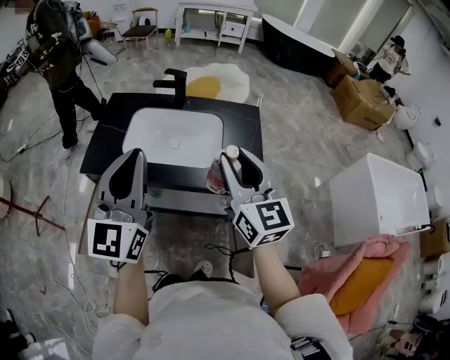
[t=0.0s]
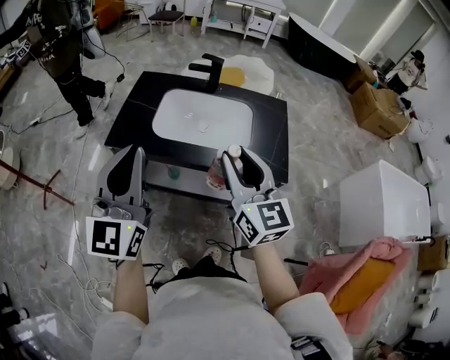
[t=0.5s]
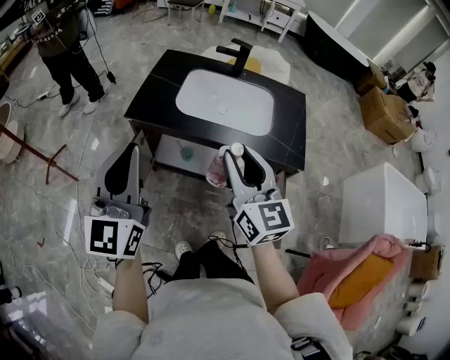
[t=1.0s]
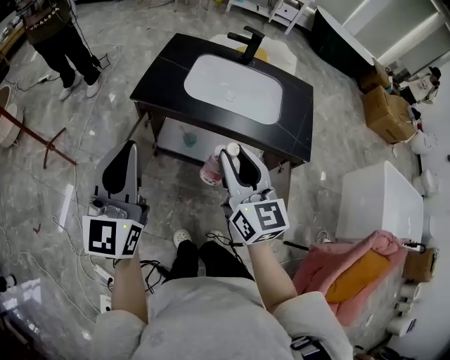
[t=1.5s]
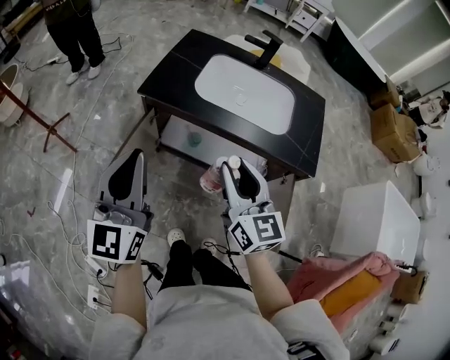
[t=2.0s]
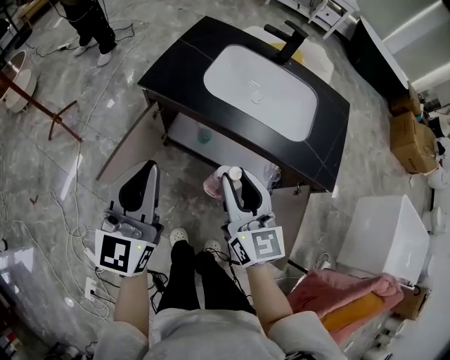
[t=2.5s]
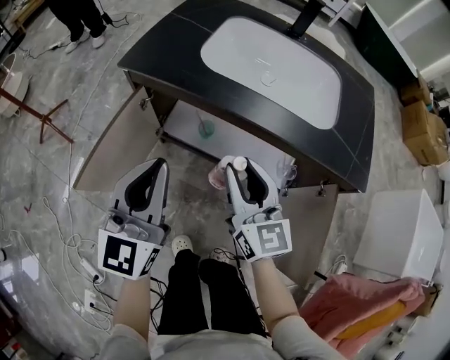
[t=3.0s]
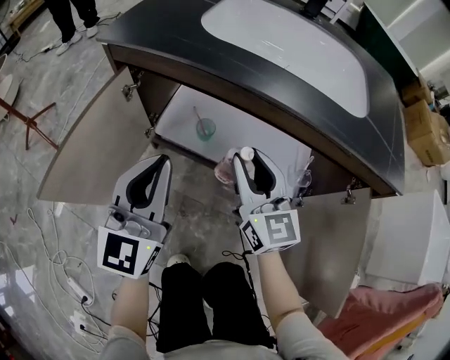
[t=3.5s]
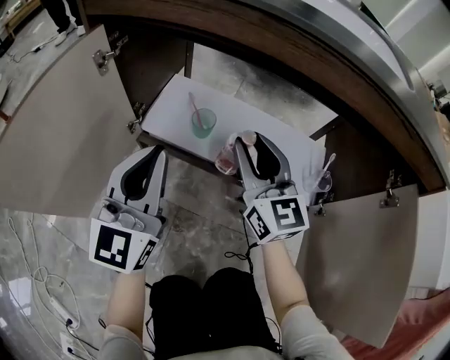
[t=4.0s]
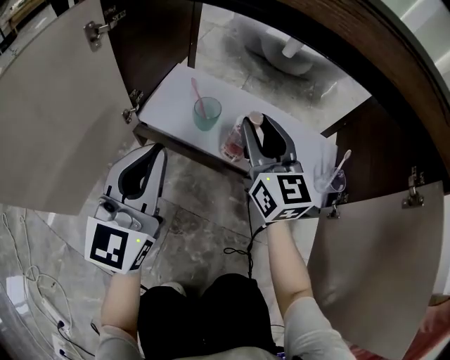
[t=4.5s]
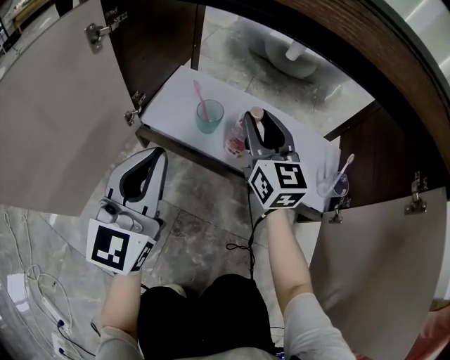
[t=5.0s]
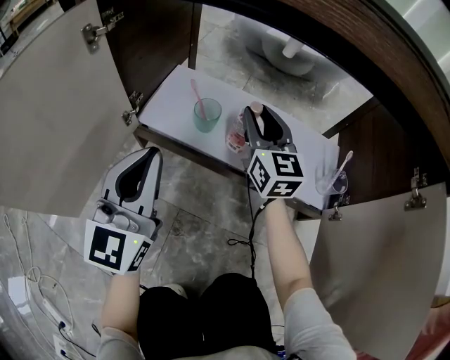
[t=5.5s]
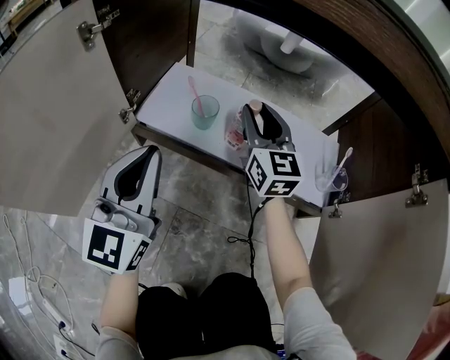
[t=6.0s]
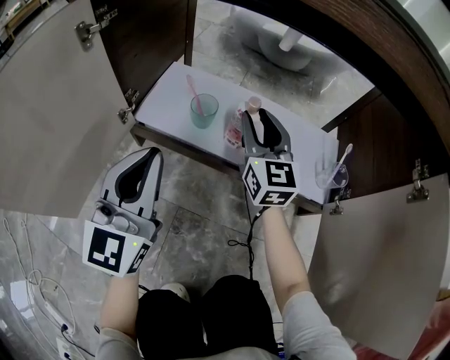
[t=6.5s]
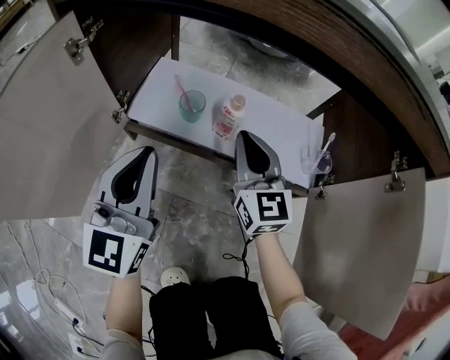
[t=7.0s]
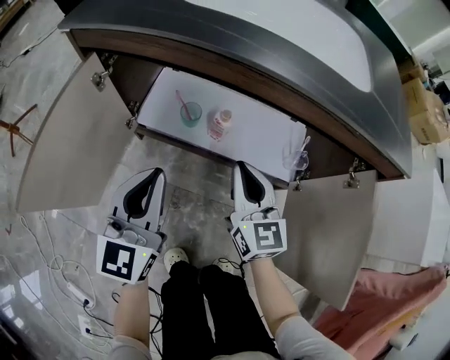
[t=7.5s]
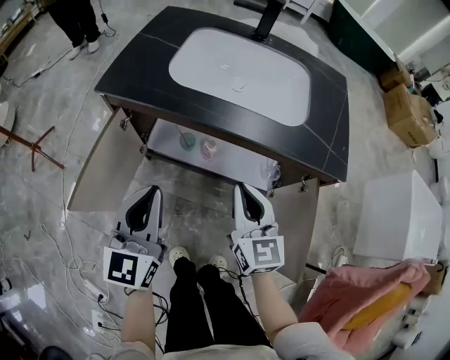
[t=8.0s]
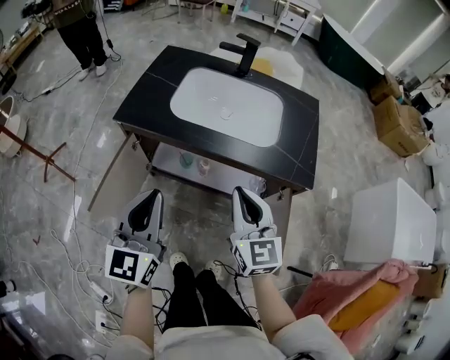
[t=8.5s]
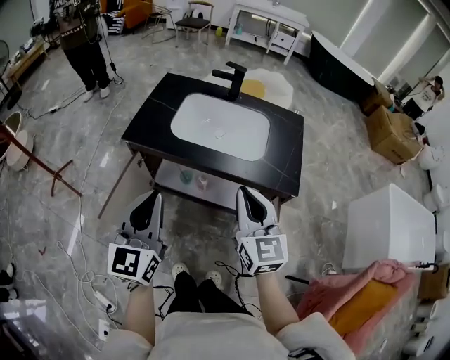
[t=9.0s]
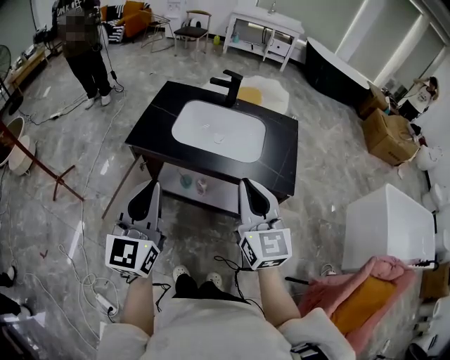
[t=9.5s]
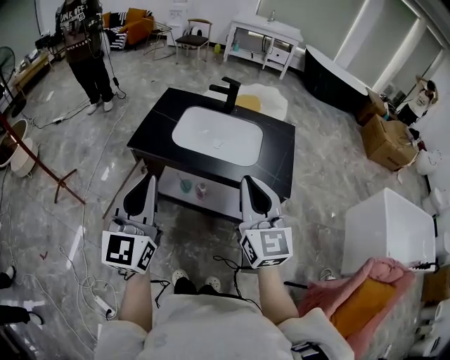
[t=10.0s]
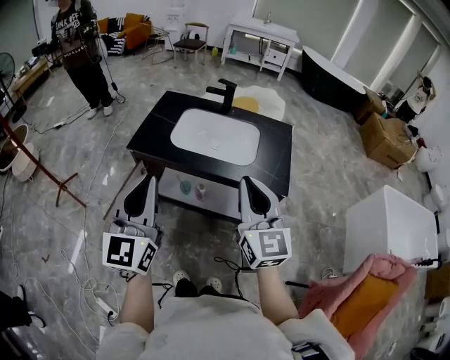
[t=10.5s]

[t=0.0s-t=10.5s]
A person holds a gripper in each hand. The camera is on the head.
t=0.0s to t=2.0s: The right gripper moves to the left and downward, about 25 cm. Meanwhile the left gripper is displaced to the left and backward by about 25 cm.
t=2.0s to t=4.0s: Both grippers move downward, about 50 cm.
t=4.0s to t=6.5s: The left gripper travels downward by about 10 cm; the right gripper moves downward and forward, some 15 cm.
t=6.5s to t=8.5s: The left gripper heads upward, covering roughly 50 cm. The right gripper goes some 60 cm upward and backward, and closes.
t=8.5s to t=10.5s: The grippers both shift upward by some 20 cm.

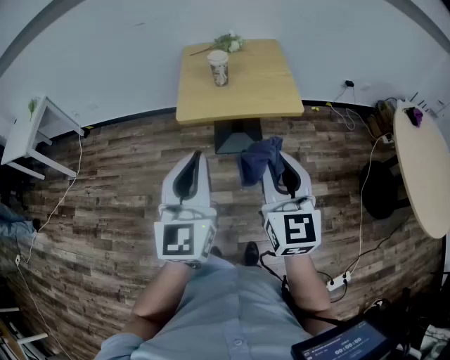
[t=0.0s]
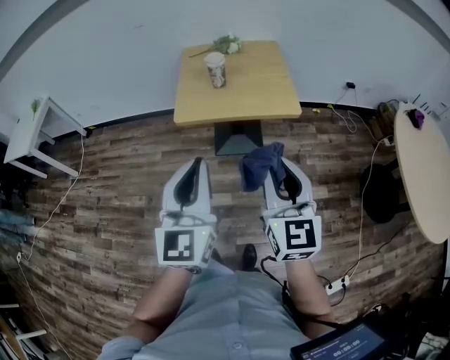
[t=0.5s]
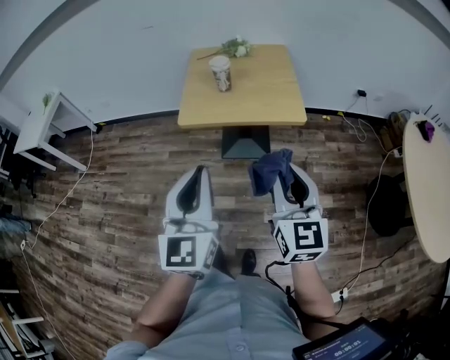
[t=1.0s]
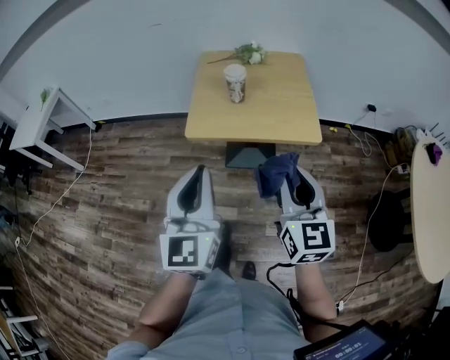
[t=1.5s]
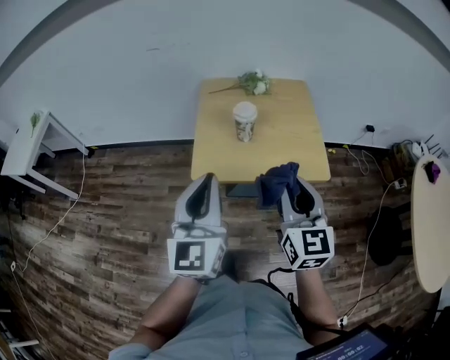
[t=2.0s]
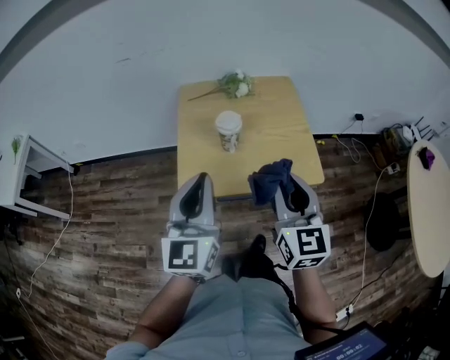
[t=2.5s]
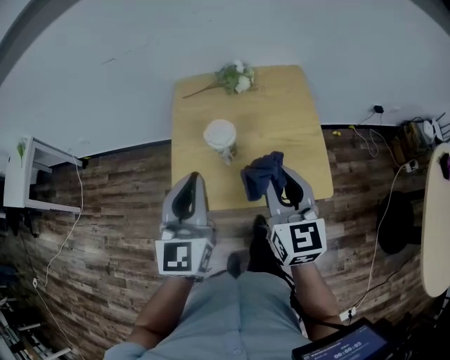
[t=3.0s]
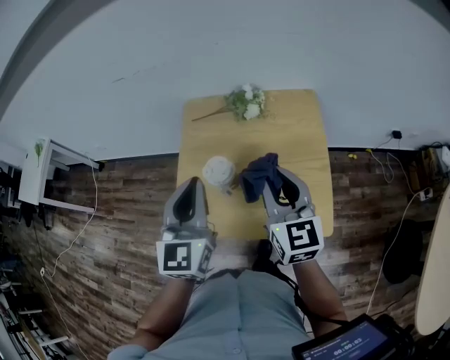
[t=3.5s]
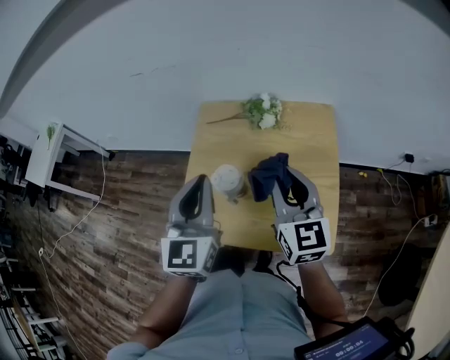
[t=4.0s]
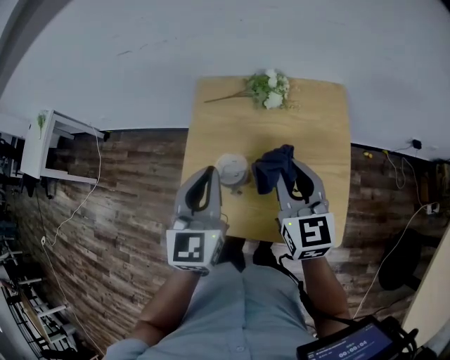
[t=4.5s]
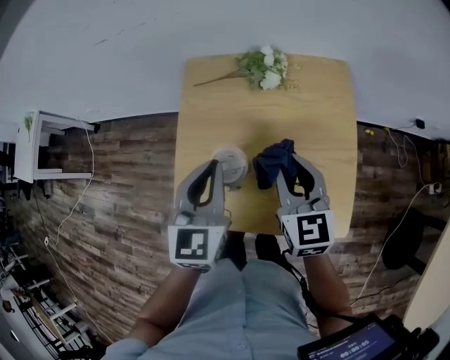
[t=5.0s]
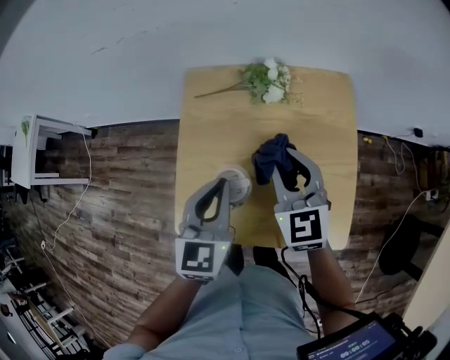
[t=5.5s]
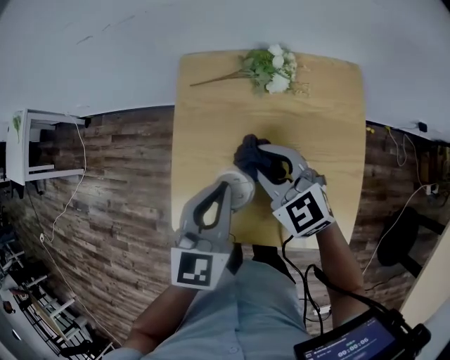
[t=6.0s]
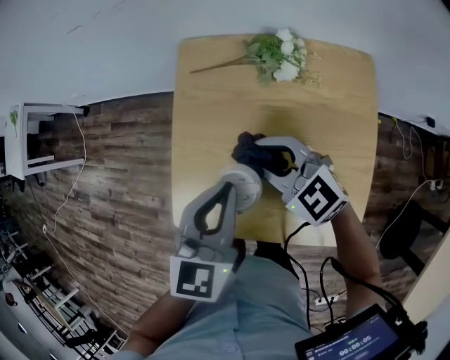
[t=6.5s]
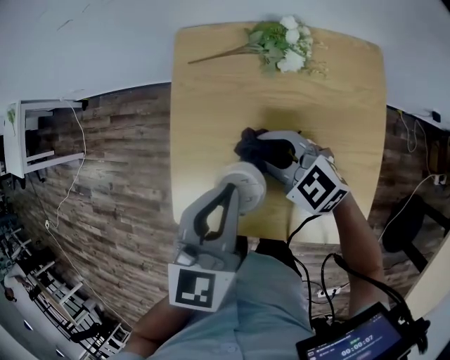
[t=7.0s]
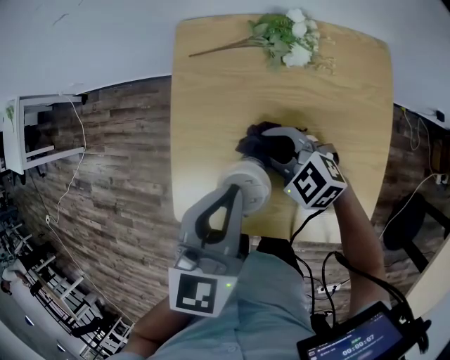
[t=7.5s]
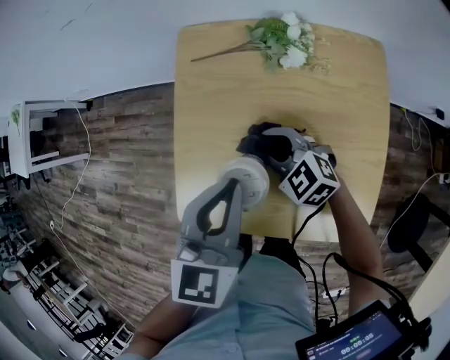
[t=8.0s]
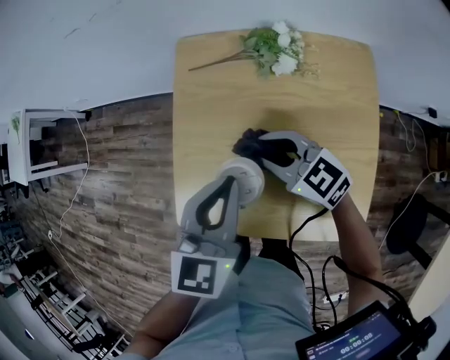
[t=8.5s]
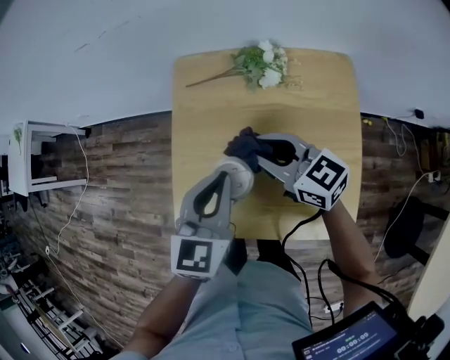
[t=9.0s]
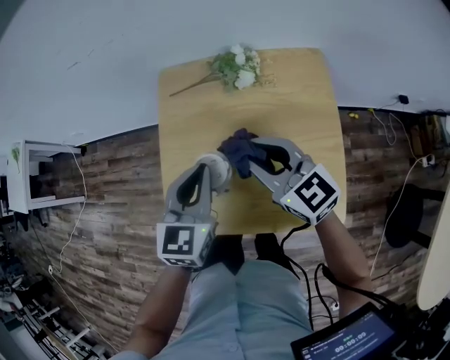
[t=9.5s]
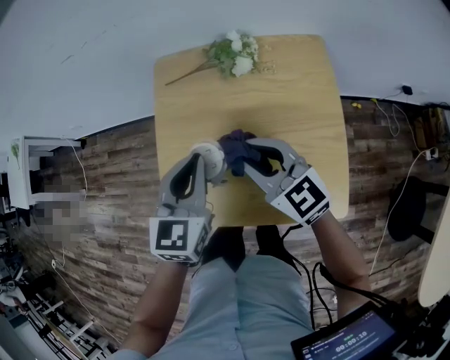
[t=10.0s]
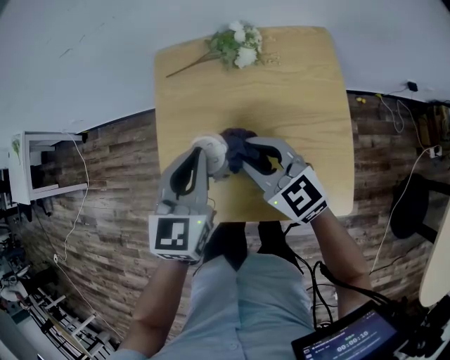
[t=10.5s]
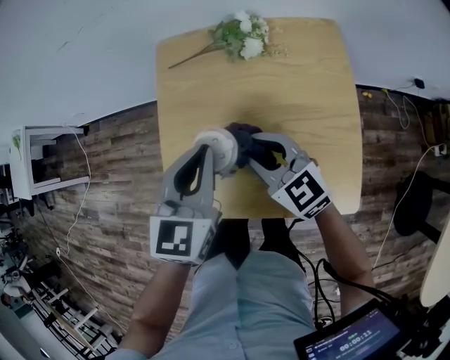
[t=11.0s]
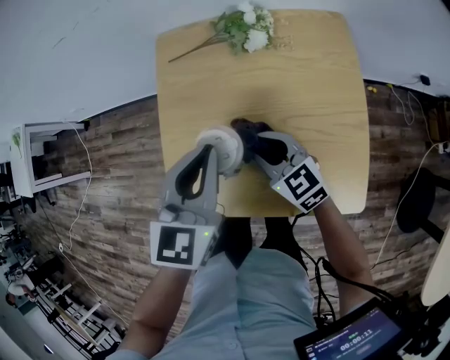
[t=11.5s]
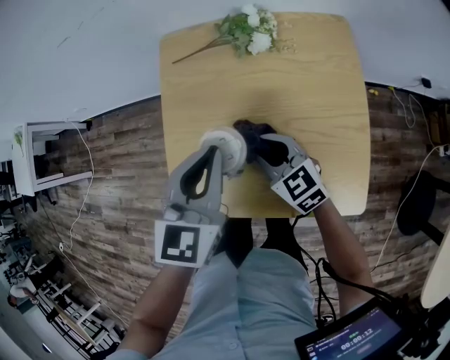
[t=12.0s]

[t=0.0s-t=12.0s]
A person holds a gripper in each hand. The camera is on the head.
t=0.0s to t=2.0s: Both grippers travel together forward, some 25 cm.
t=2.0s to t=4.0s: The grippers both shift forward by about 30 cm.
t=4.0s to t=6.0s: The right gripper heads downward, to the left and forward, covering about 20 cm, and swivels about 40 degrees. Meanwhile the left gripper goes about 15 cm downward and forward, and turns by about 20 degrees.
t=6.0s to t=8.0s: The right gripper moves downward, some 10 cm, and rotates roughly 20 degrees.
t=8.0s to t=10.0s: The right gripper moves upward and backward, roughly 15 cm, and swivels roughly 30 degrees.
t=10.0s to t=12.0s: The right gripper moves downward, about 10 cm.

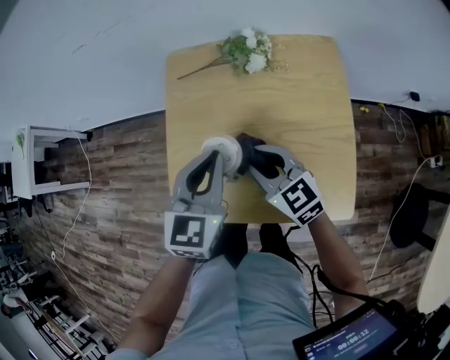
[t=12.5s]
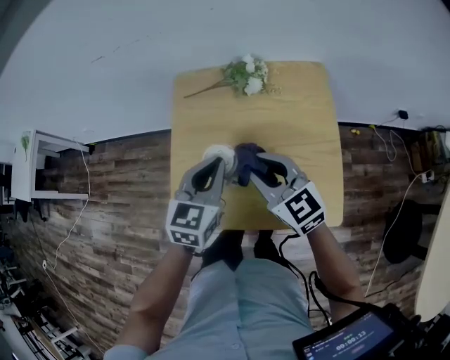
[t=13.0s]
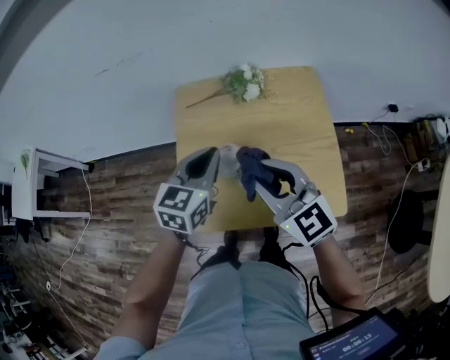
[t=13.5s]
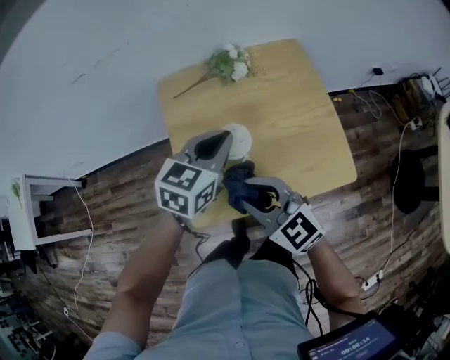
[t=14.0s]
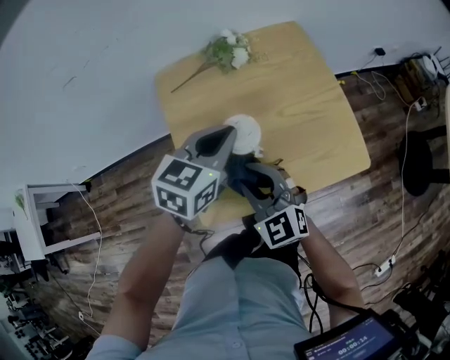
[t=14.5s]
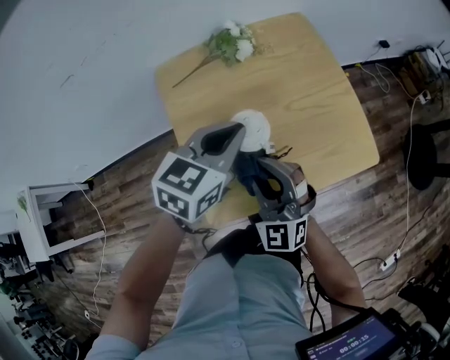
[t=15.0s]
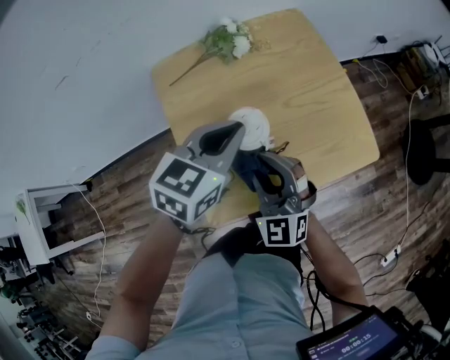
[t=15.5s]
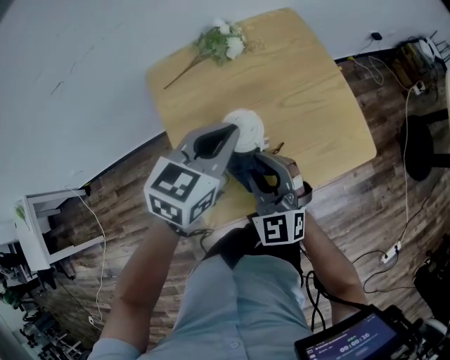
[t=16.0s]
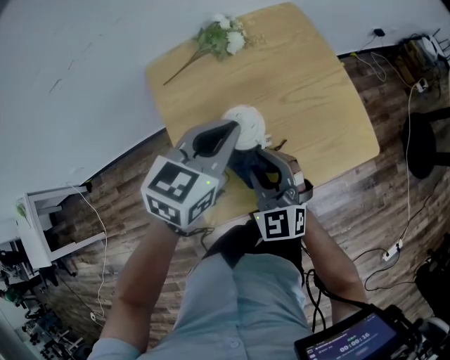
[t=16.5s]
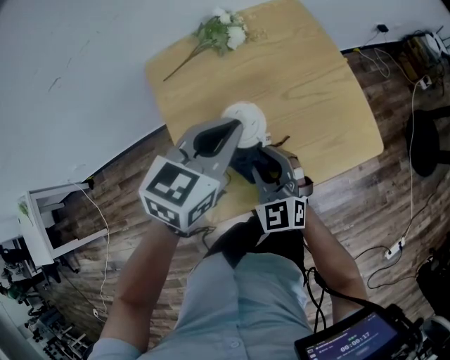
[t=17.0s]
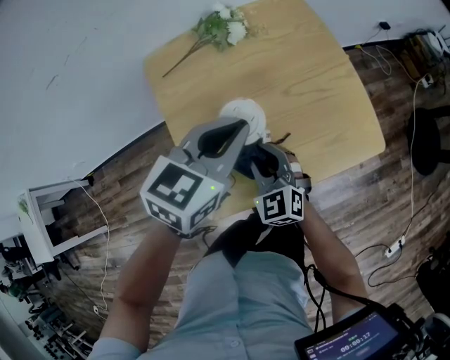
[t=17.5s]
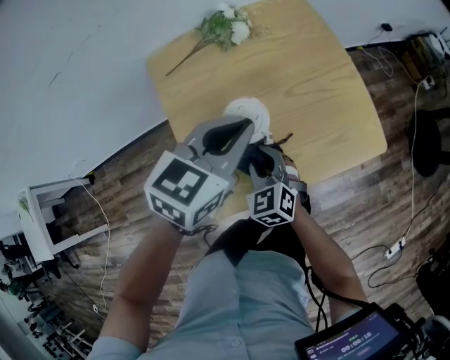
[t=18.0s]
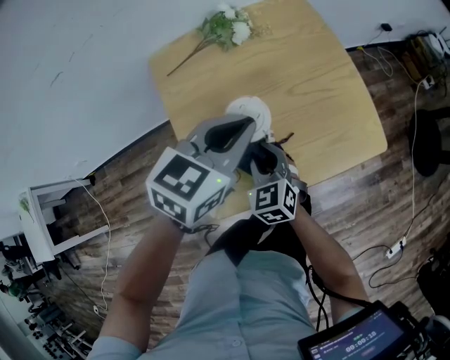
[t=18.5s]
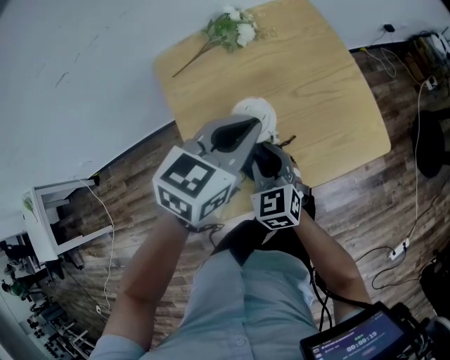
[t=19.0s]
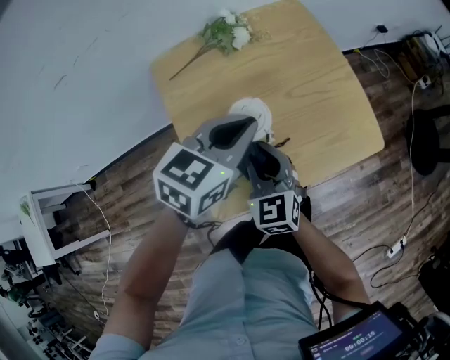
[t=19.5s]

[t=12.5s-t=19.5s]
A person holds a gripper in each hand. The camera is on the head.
t=12.5s to t=14.5s: The right gripper reaches approximately 15 cm upward, then returns, and rotates approximately 30 degrees; the left gripper swivels roughly 30 degrees.
t=16.0s to t=17.5s: The right gripper shifts some 10 cm downward.
t=17.5s to t=19.5s: The right gripper travels upward by approximately 5 cm.
